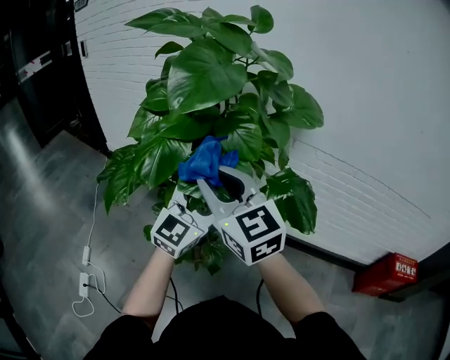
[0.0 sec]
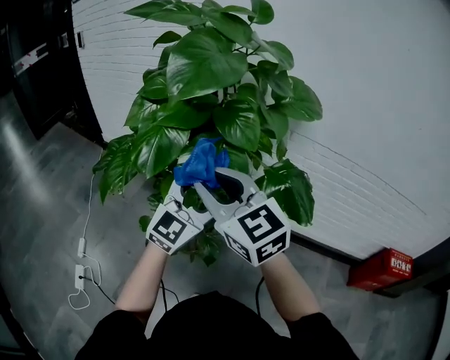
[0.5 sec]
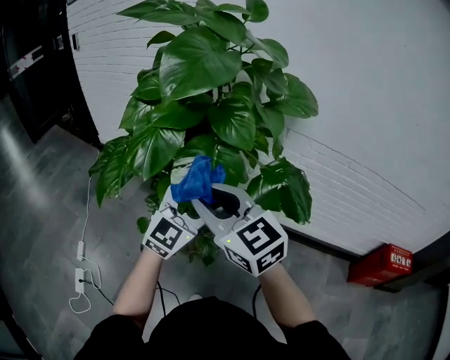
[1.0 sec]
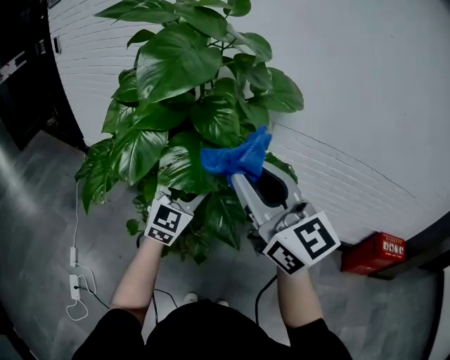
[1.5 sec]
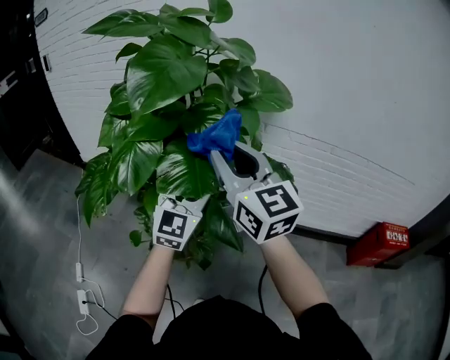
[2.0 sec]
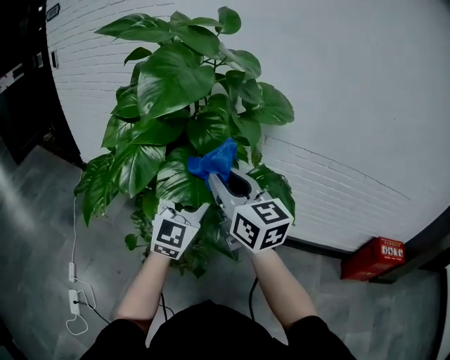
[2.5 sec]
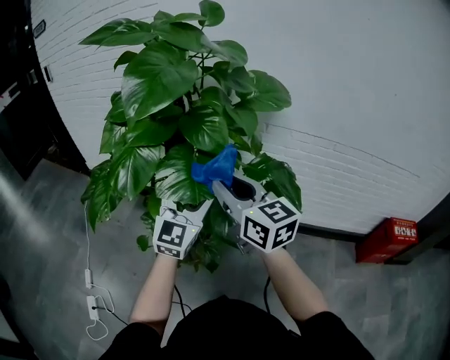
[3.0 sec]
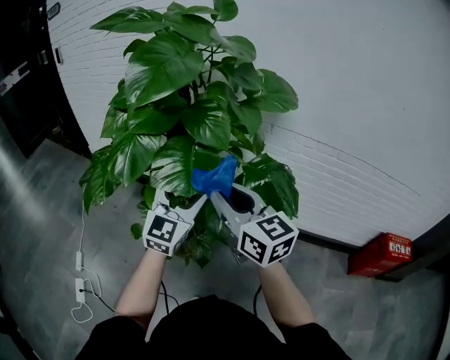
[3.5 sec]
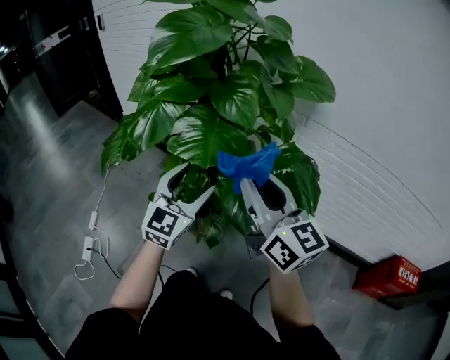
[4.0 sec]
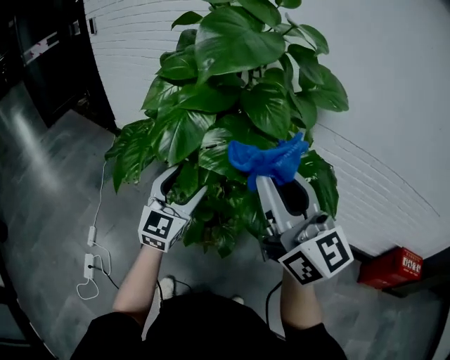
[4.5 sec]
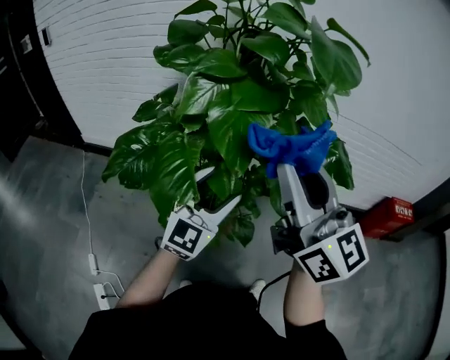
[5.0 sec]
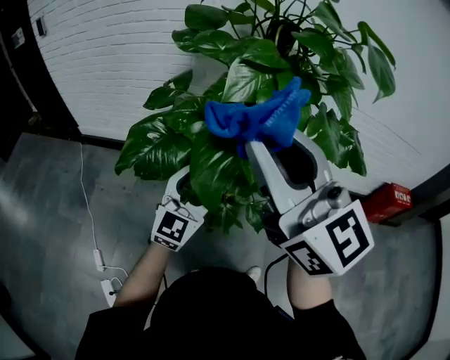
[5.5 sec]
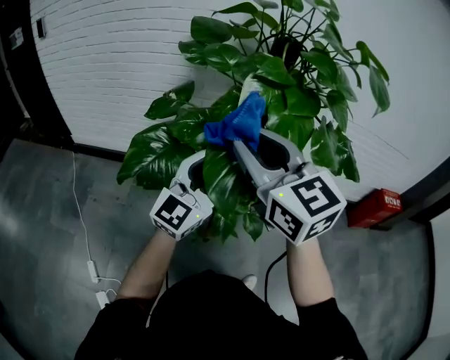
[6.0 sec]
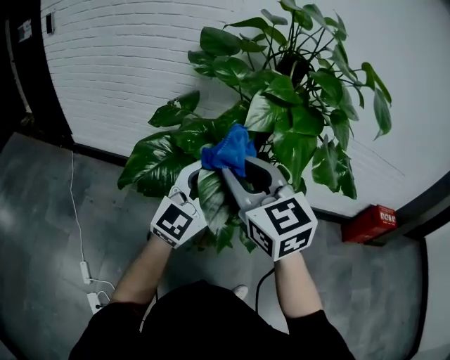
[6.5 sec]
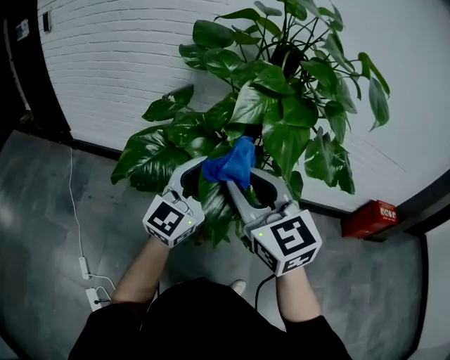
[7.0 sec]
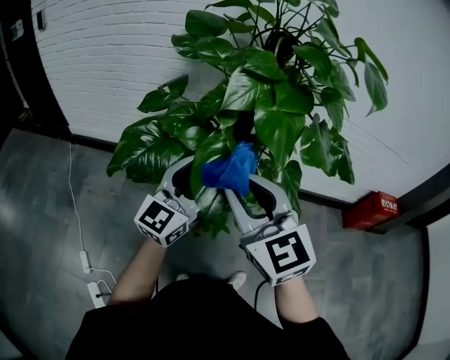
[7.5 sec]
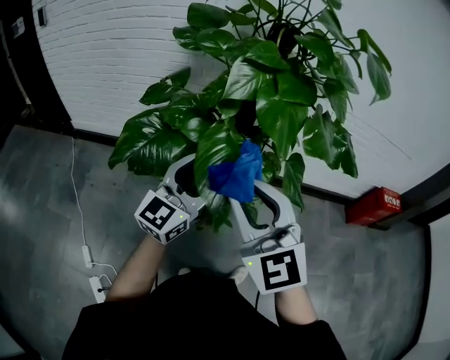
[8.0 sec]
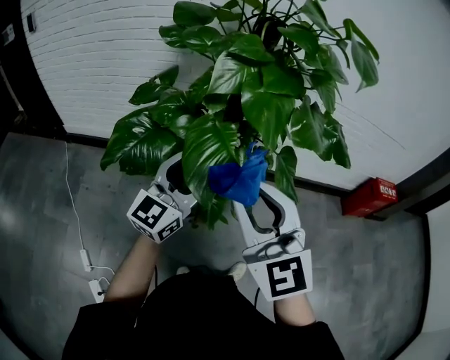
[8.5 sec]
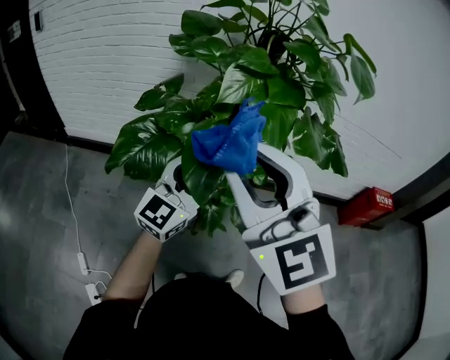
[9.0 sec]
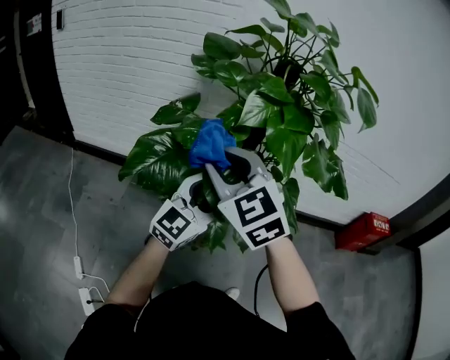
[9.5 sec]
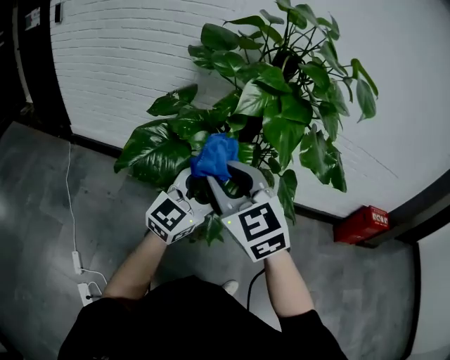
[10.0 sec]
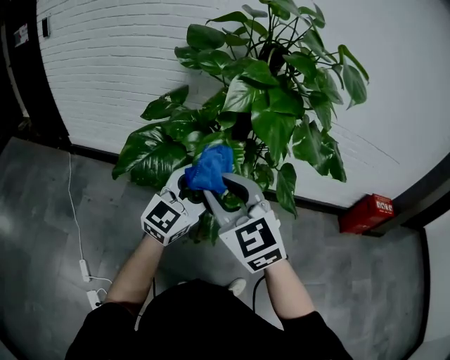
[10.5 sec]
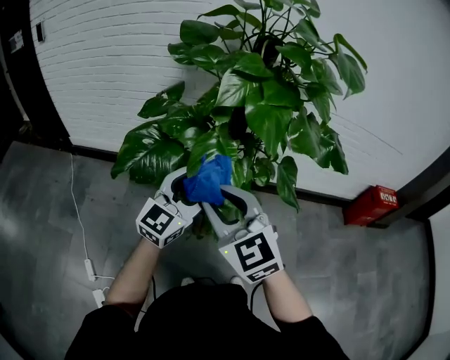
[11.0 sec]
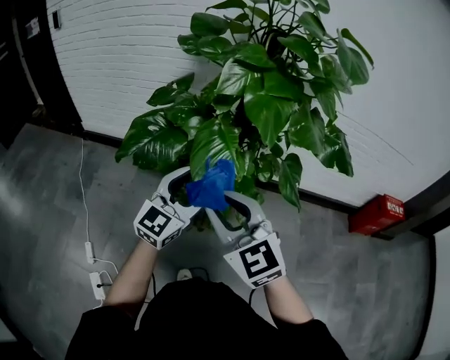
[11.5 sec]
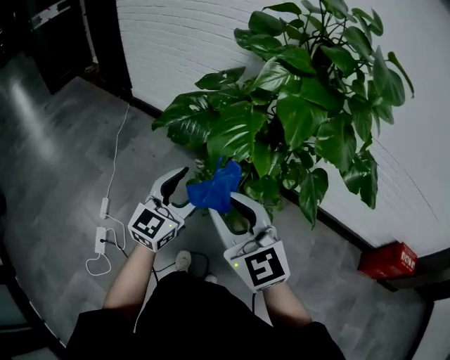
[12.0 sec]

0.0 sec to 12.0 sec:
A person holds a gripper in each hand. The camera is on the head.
0.0 sec to 2.0 sec: The right gripper travels to the right by roughly 10 cm.
2.0 sec to 4.0 sec: Both grippers move downward and backward, approximately 10 cm. The right gripper turns by approximately 20 degrees.
4.0 sec to 6.0 sec: The right gripper ends up about 40 cm from where it was, and turns by some 30 degrees; the left gripper moves about 25 cm, and turns by about 40 degrees.
6.0 sec to 8.0 sec: The right gripper is displaced backward and downward by roughly 10 cm.
8.0 sec to 10.0 sec: The right gripper travels to the left by some 5 cm.
10.0 sec to 12.0 sec: The left gripper changes place by roughly 10 cm, and rotates approximately 30 degrees, while the right gripper changes place by approximately 15 cm, and changes its angle by about 30 degrees.

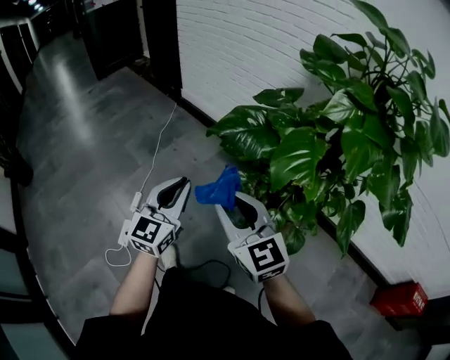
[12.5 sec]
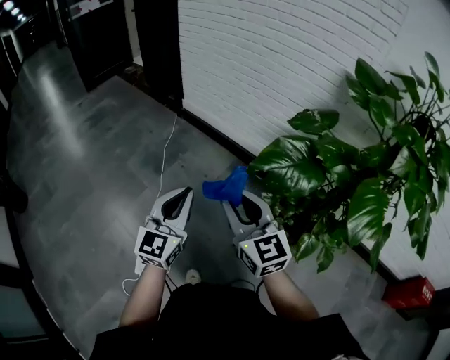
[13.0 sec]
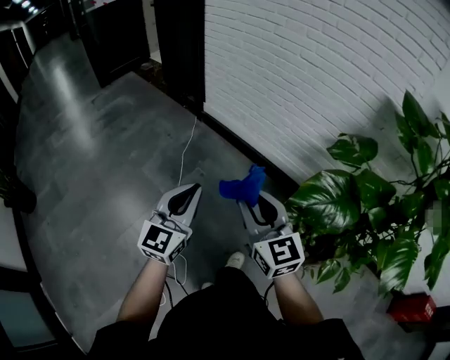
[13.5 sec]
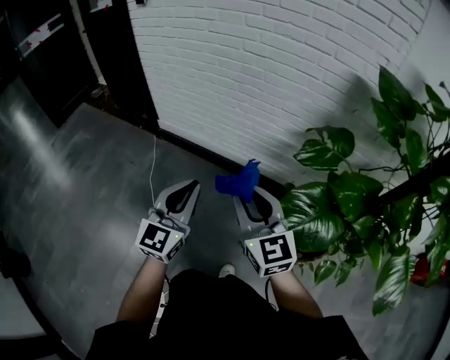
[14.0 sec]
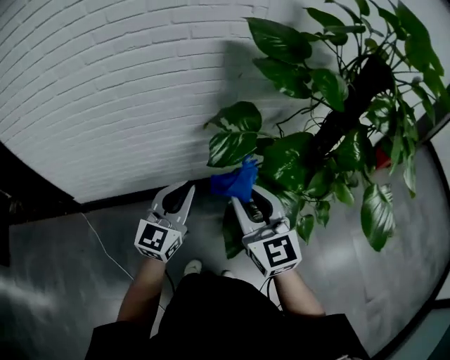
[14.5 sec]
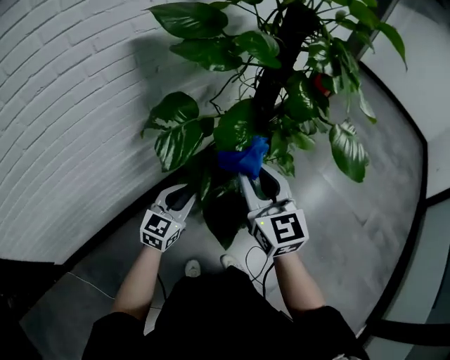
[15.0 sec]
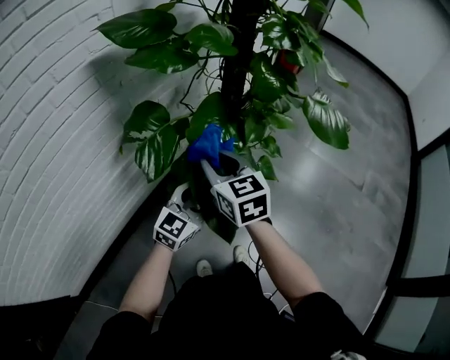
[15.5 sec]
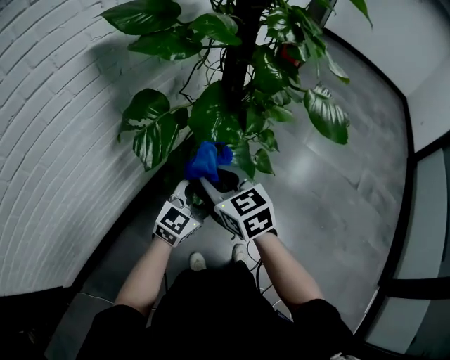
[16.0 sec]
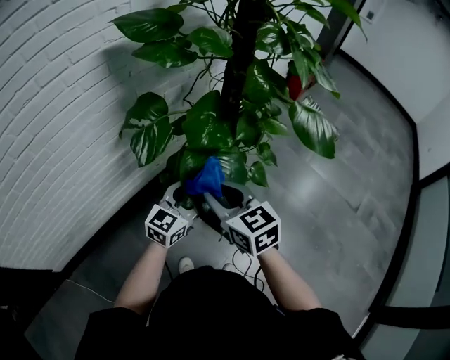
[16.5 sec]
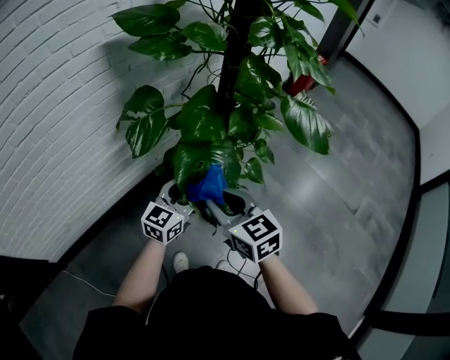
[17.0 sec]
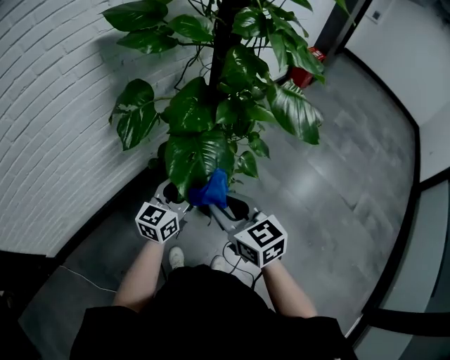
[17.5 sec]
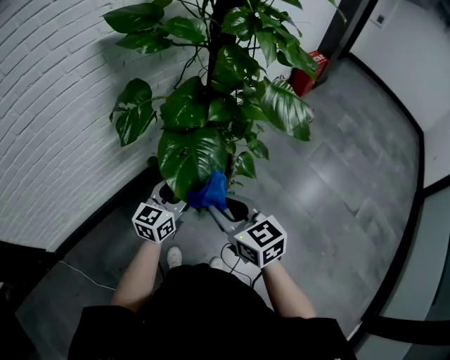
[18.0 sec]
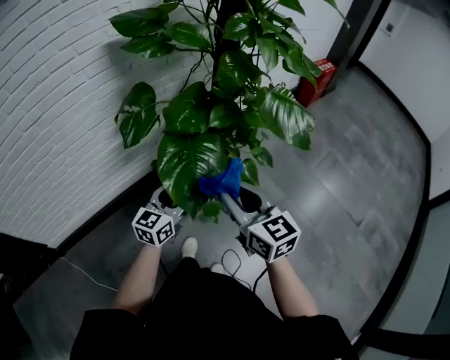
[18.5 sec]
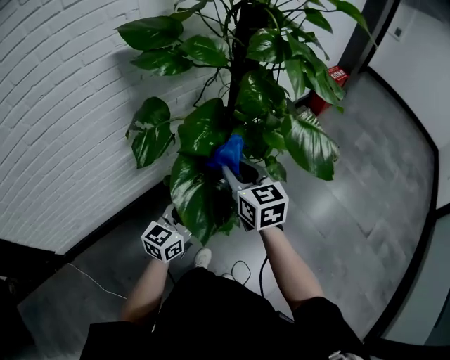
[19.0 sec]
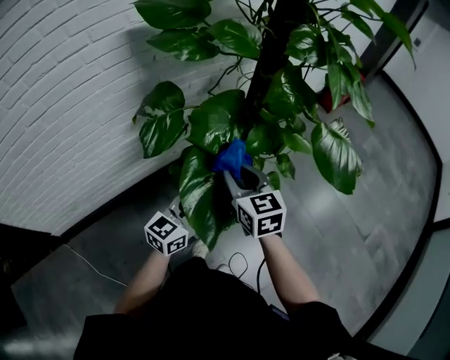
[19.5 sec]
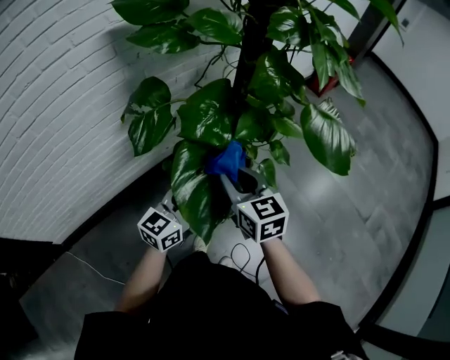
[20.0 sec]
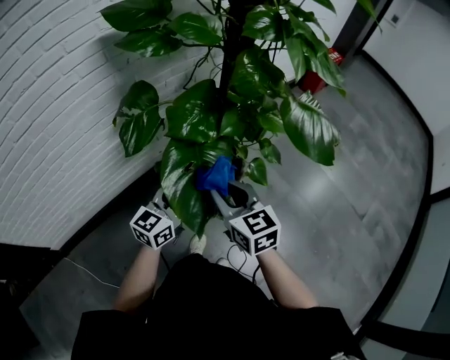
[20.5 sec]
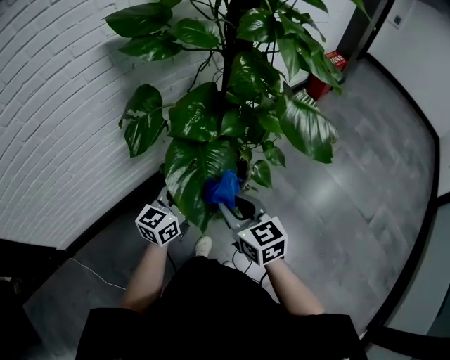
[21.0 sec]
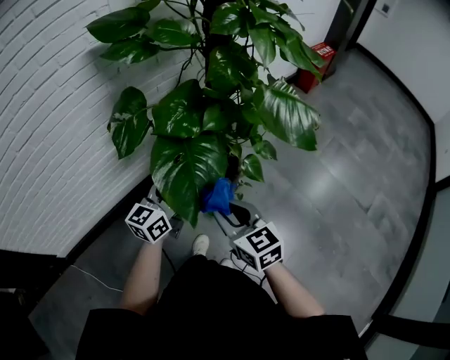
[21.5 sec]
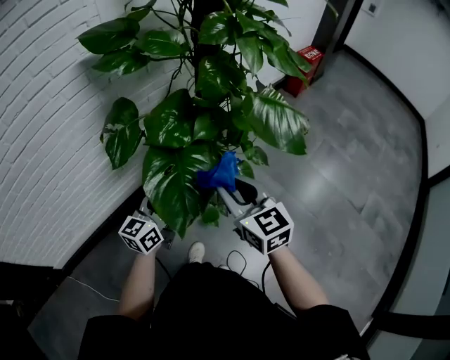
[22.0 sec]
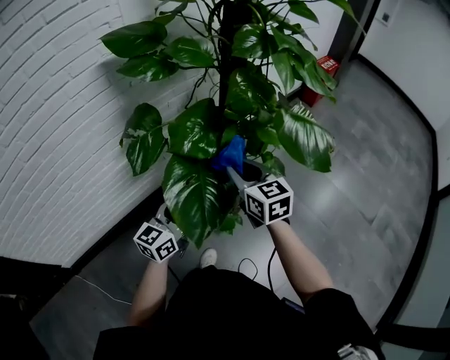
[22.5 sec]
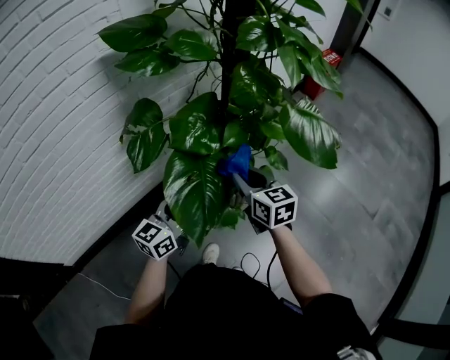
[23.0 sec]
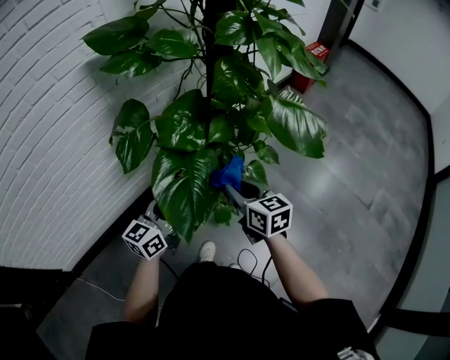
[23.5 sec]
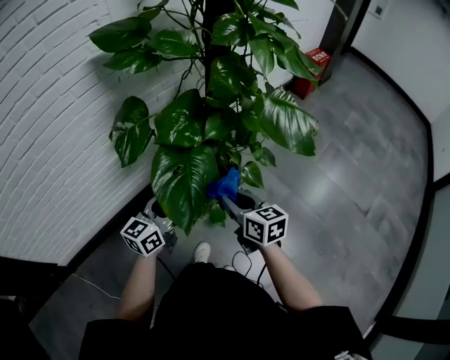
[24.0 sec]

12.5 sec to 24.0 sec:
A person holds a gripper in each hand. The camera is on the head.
12.5 sec to 14.5 sec: The two grippers travel together, some 50 cm. The right gripper changes its angle by roughly 60 degrees; the left gripper rotates approximately 60 degrees.
14.5 sec to 16.5 sec: The right gripper ends up approximately 10 cm from where it was, and turns by roughly 30 degrees. The left gripper shifts by roughly 20 cm, rotates roughly 50 degrees, and opens up.
16.5 sec to 18.5 sec: The right gripper goes approximately 15 cm to the right, while the left gripper ends up about 5 cm from where it was.
18.5 sec to 20.0 sec: The right gripper shifts roughly 15 cm forward, to the left and downward.
20.0 sec to 22.0 sec: The right gripper shifts about 10 cm to the right and backward.
22.0 sec to 24.0 sec: The right gripper heads downward, covering roughly 10 cm, and changes its angle by about 20 degrees.

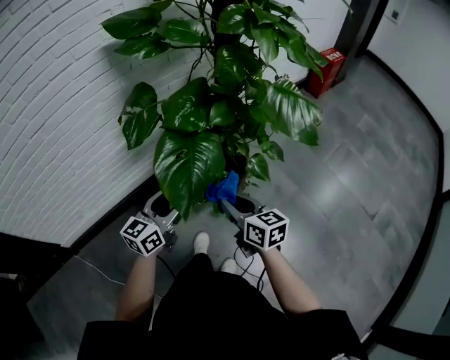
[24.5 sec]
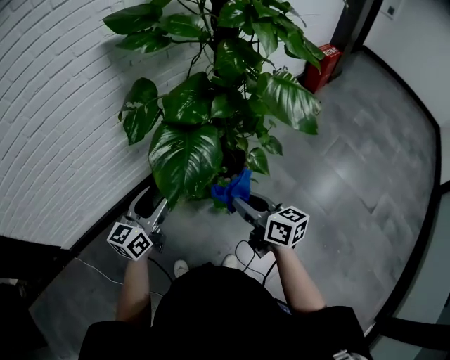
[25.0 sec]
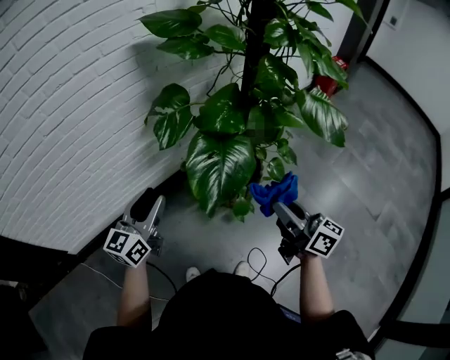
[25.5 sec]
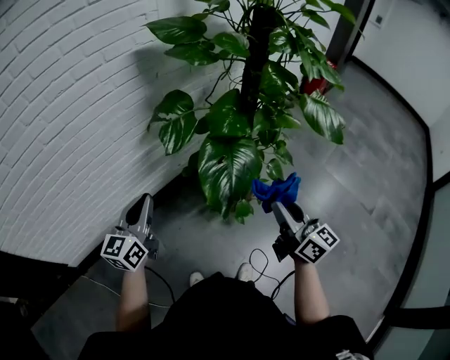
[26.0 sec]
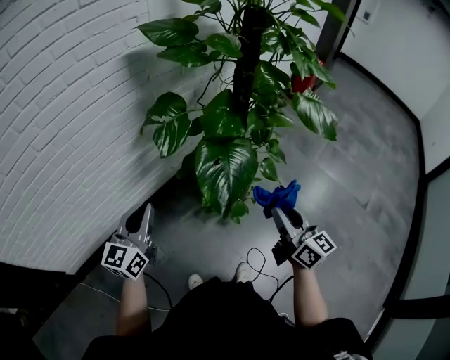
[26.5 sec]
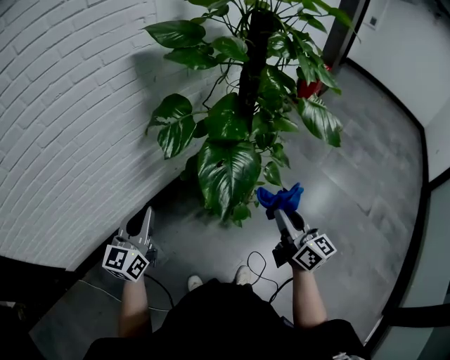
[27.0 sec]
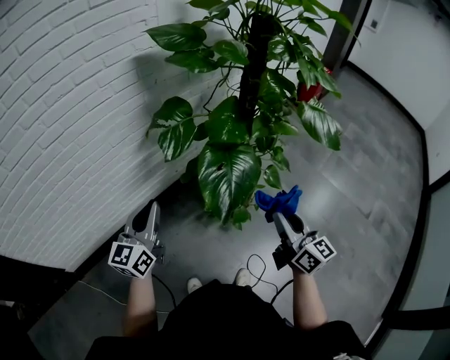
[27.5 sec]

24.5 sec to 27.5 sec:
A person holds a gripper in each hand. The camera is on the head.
24.5 sec to 26.0 sec: The right gripper is displaced upward and backward by approximately 15 cm, and turns by roughly 30 degrees; the left gripper shifts roughly 25 cm to the left, and closes its fingers.
26.0 sec to 27.5 sec: The grippers move only a little.
